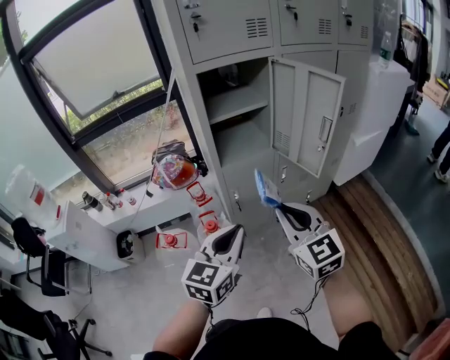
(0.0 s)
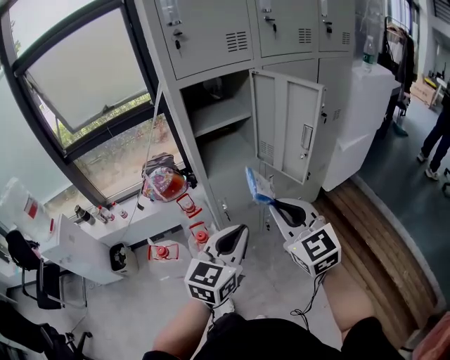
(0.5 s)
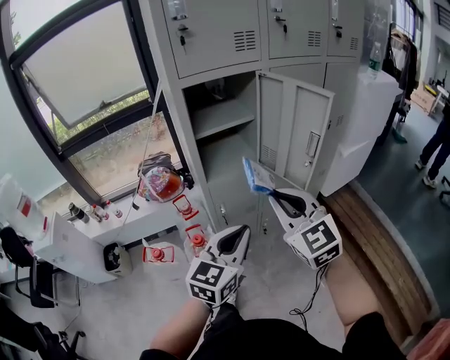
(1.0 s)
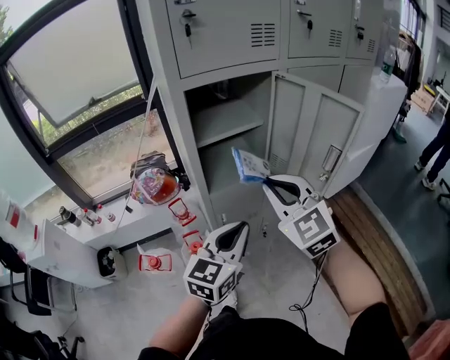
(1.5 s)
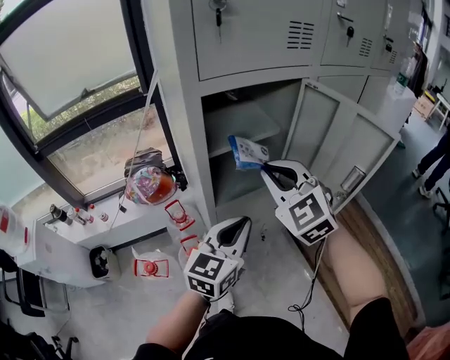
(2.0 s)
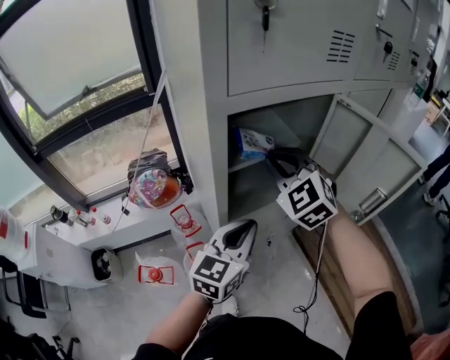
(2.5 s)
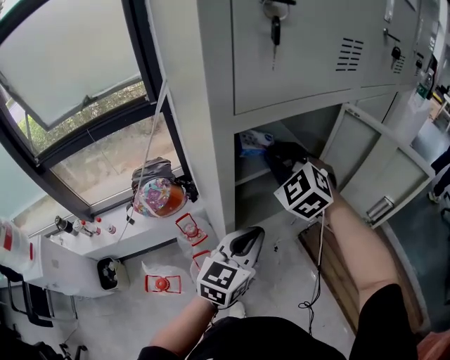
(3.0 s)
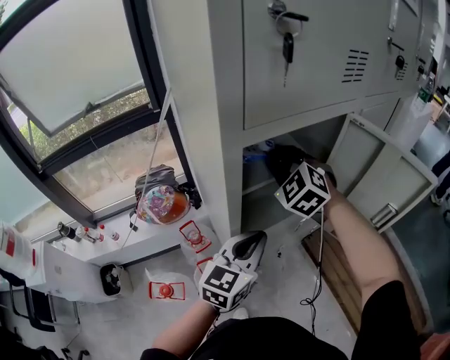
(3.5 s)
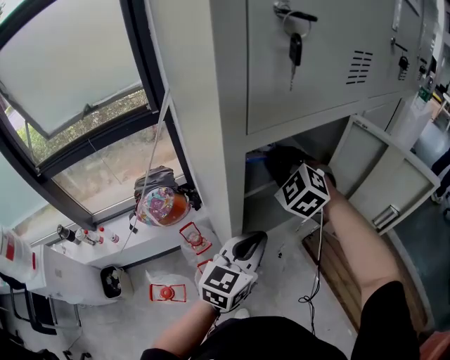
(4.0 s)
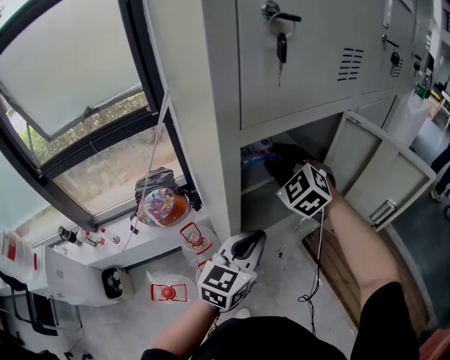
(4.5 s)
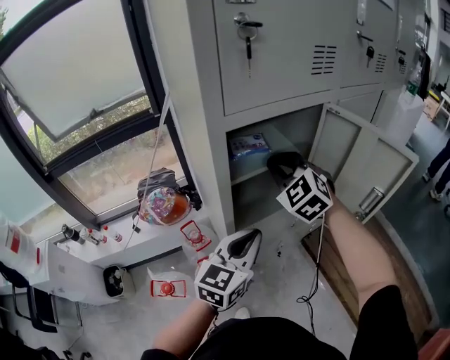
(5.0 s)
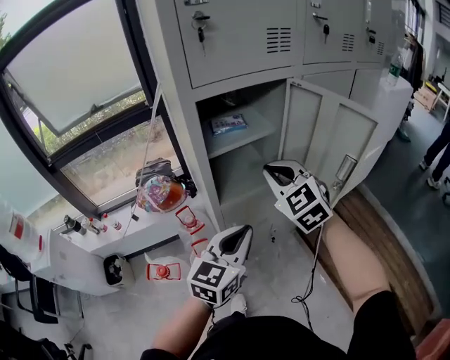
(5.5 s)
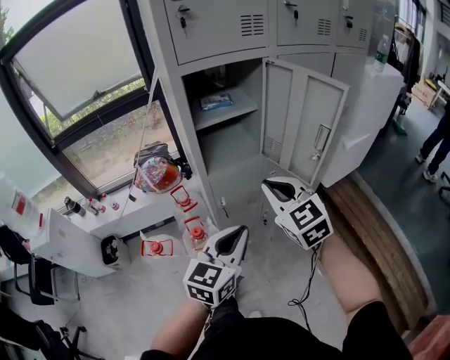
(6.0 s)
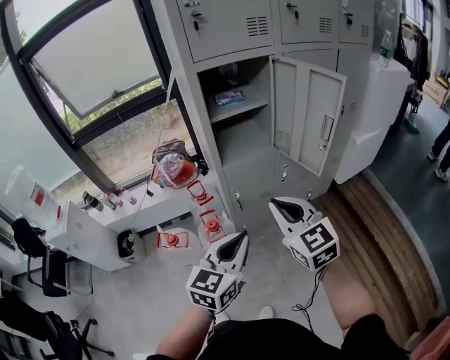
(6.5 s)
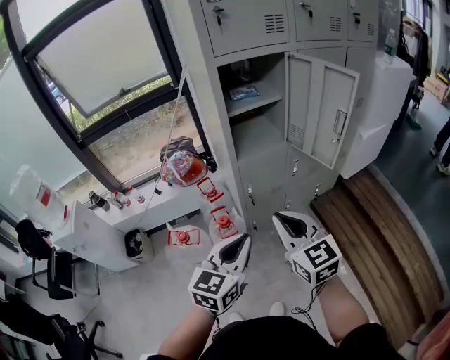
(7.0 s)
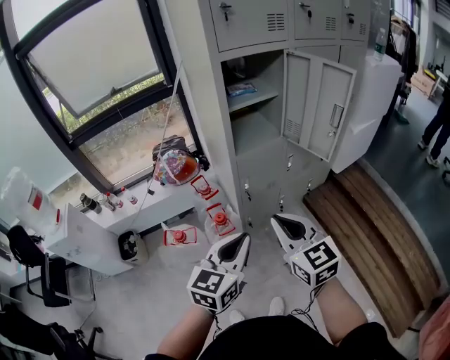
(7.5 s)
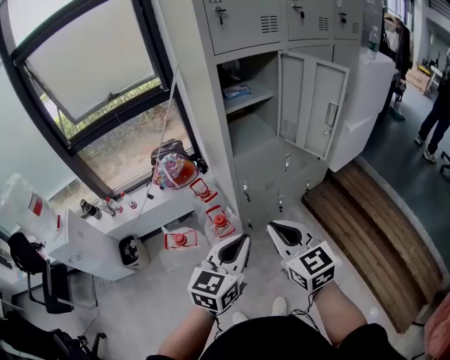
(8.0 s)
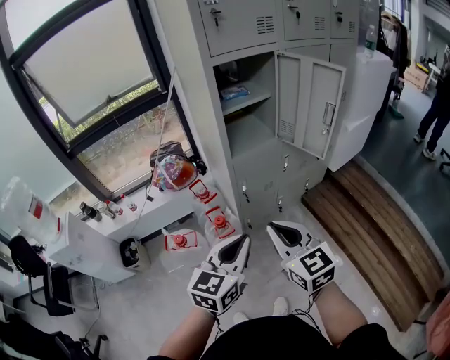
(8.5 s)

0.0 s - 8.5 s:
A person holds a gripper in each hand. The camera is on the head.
0.0 s - 2.0 s: The two grippers go roughly 25 cm forward. The right gripper turns by roughly 30 degrees.
2.0 s - 4.0 s: The left gripper heads forward, covering about 10 cm, while the right gripper travels forward and to the left by about 20 cm.
4.0 s - 6.5 s: Both grippers move backward, roughly 35 cm. The right gripper rotates some 40 degrees.
6.5 s - 8.5 s: The right gripper goes some 15 cm backward and to the left, while the left gripper is displaced to the left and backward by about 10 cm.

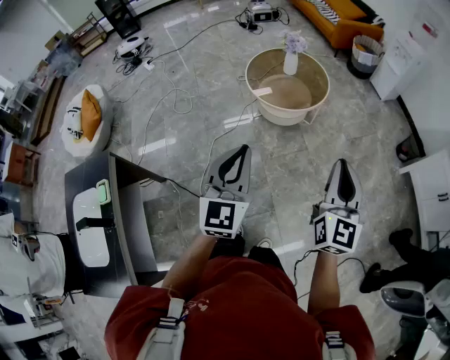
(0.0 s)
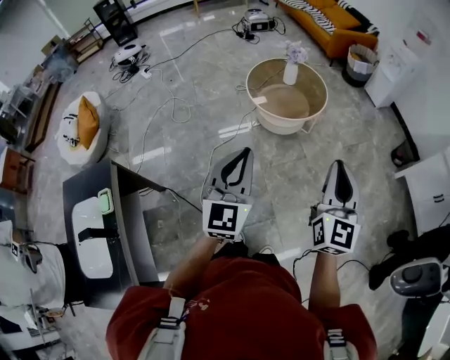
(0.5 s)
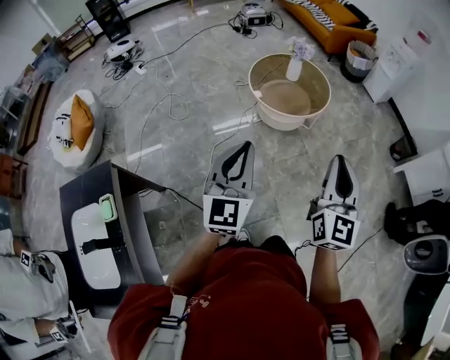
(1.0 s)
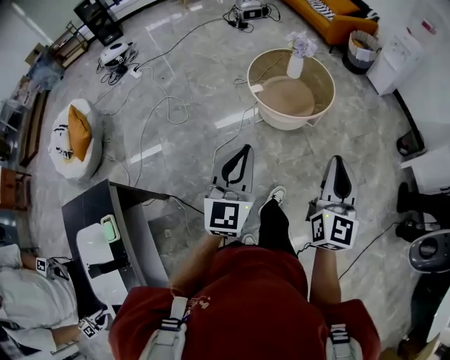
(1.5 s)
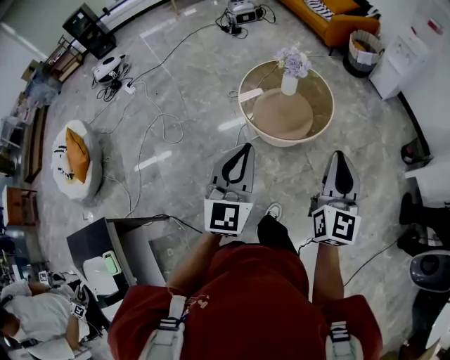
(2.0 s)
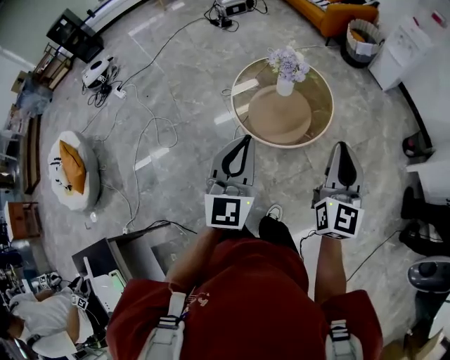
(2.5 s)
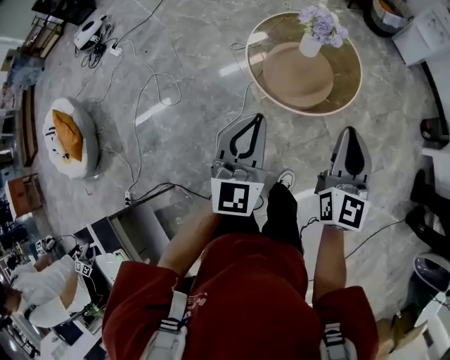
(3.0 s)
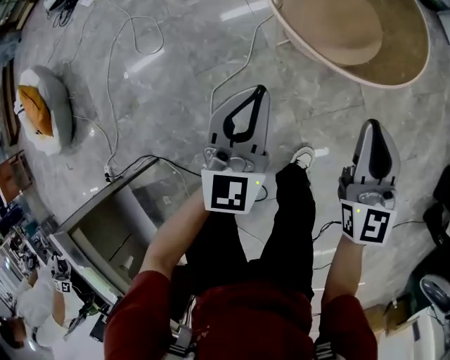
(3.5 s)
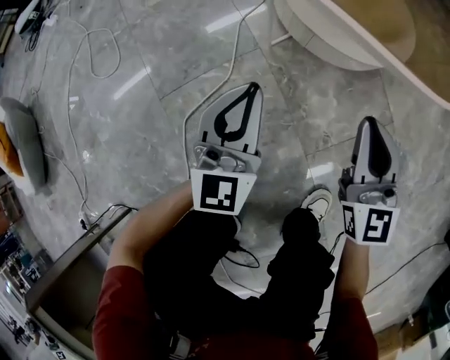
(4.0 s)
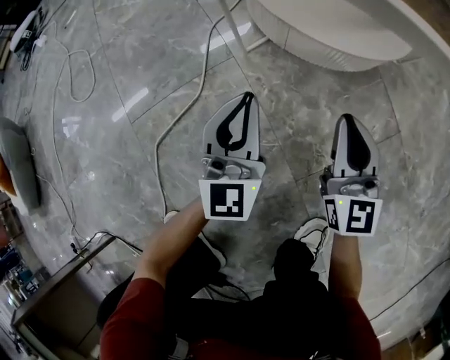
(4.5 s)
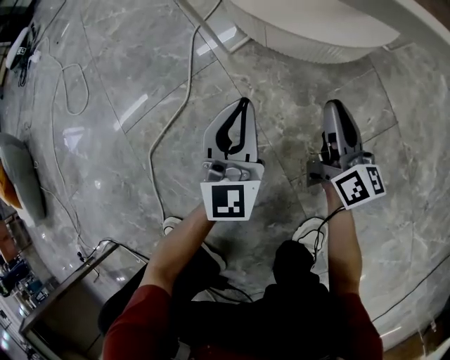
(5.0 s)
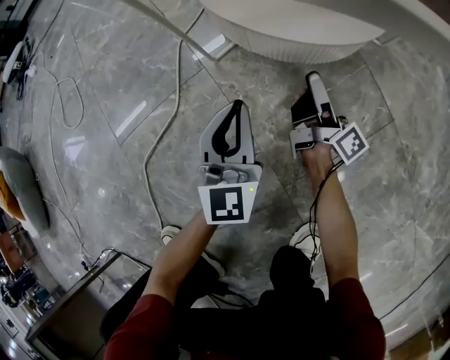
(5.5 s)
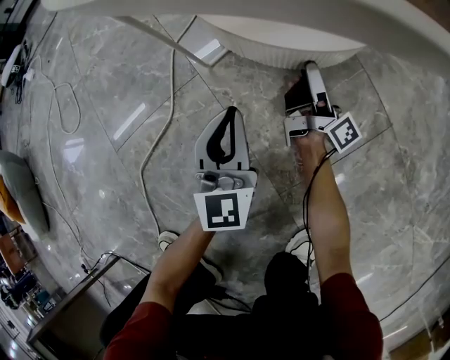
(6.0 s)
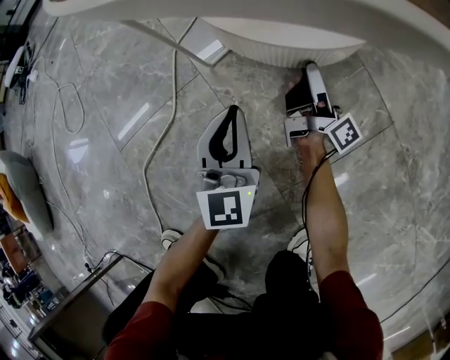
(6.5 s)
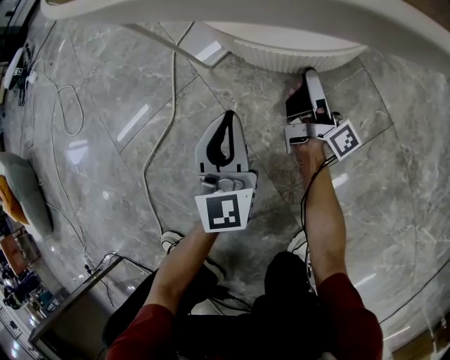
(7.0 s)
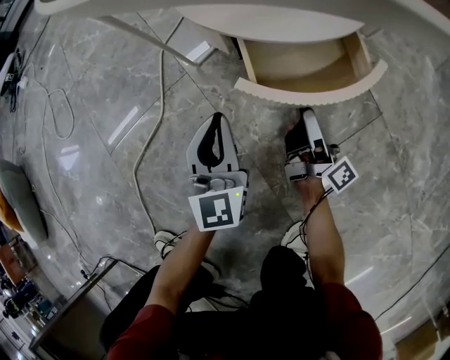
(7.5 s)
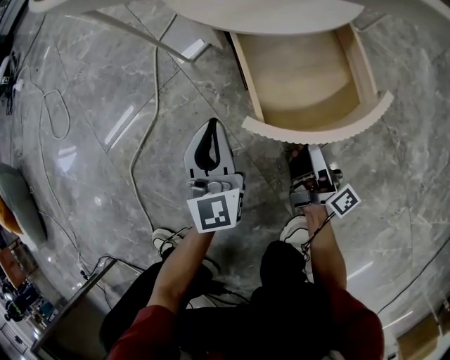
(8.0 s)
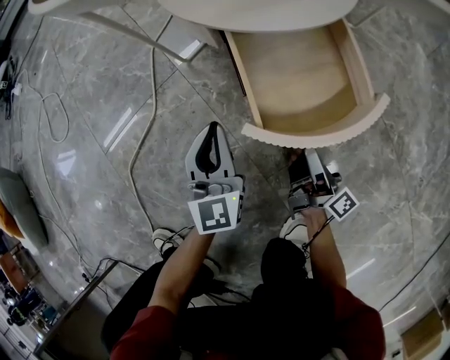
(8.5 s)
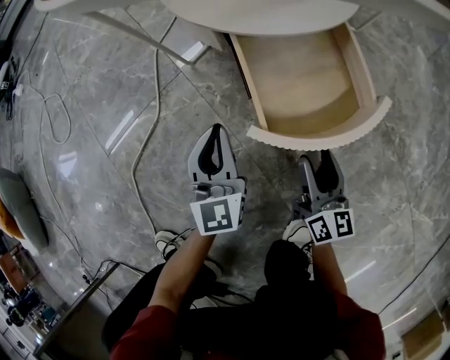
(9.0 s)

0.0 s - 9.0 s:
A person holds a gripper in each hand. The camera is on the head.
0.0 s - 2.0 s: The left gripper heads forward, covering about 25 cm. Meanwhile the right gripper heads forward and to the left, covering approximately 25 cm.
2.0 s - 4.5 s: Both grippers travel together downward, roughly 80 cm.
4.5 s - 7.0 s: The left gripper shifts roughly 5 cm downward; the right gripper moves downward and forward, roughly 20 cm, rotates around the line of its fingers by about 80 degrees, clockwise from behind, and opens its fingers.
7.0 s - 9.0 s: The right gripper travels backward by roughly 20 cm, and twists some 50 degrees counterclockwise, seen from behind, while the left gripper changes place by about 5 cm.

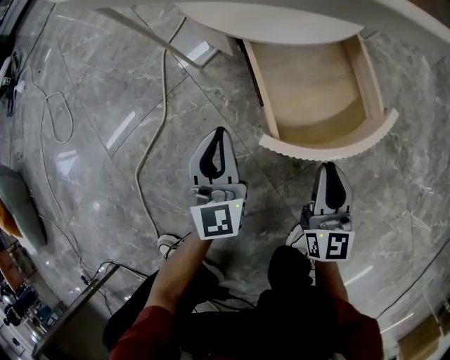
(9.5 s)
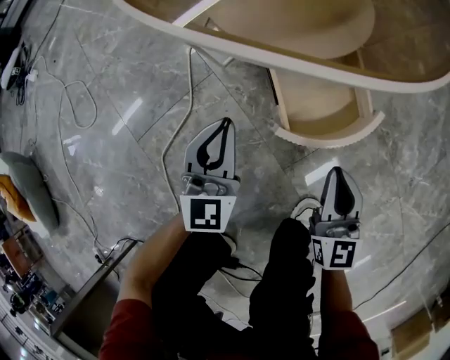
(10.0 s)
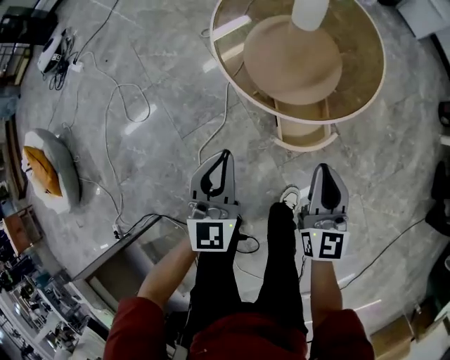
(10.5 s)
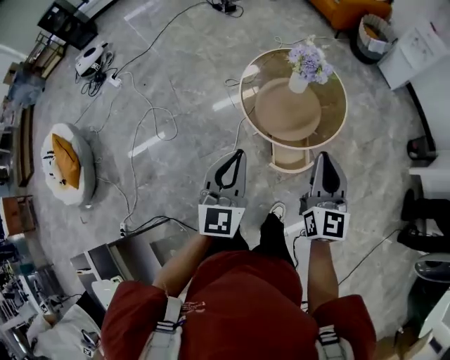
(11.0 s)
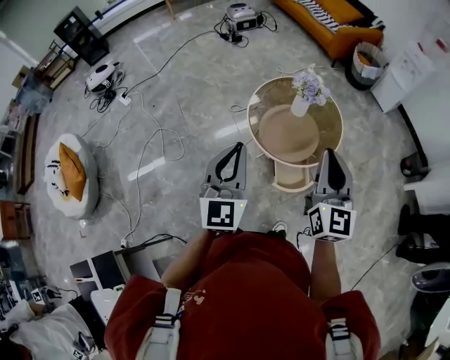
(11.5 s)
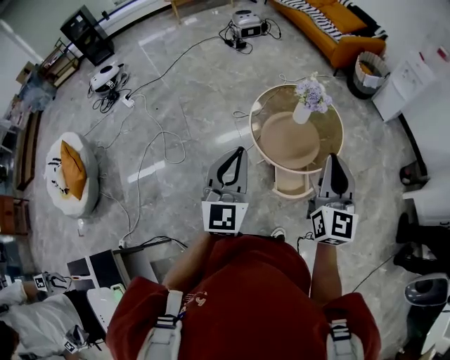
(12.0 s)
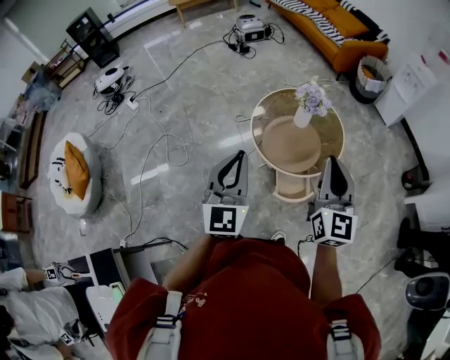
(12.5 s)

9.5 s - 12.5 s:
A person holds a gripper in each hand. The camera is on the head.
9.5 s - 11.0 s: The two grippers go roughly 80 cm upward.
11.0 s - 12.5 s: The two grippers go about 10 cm upward.

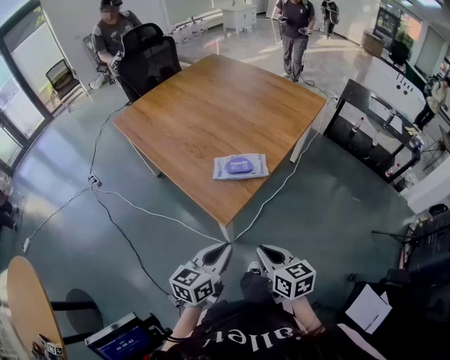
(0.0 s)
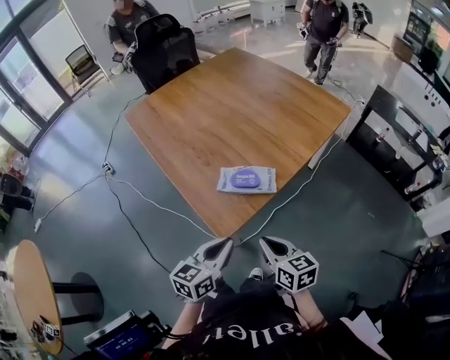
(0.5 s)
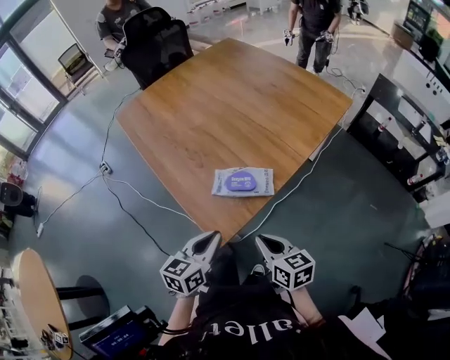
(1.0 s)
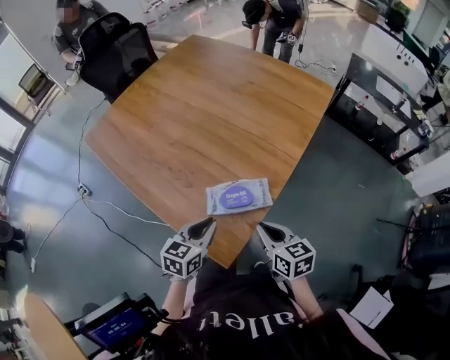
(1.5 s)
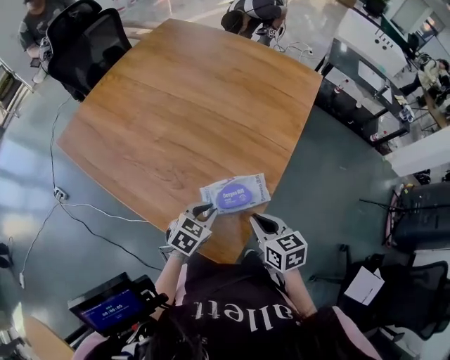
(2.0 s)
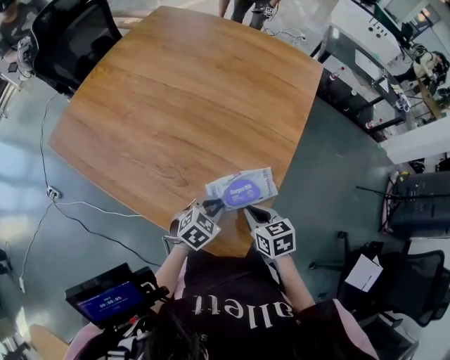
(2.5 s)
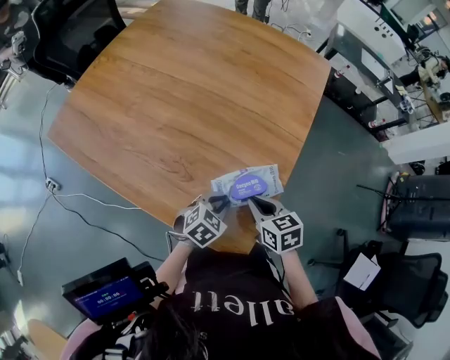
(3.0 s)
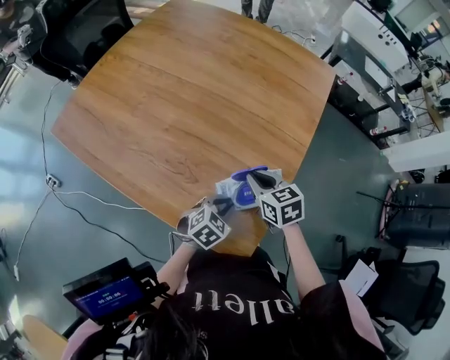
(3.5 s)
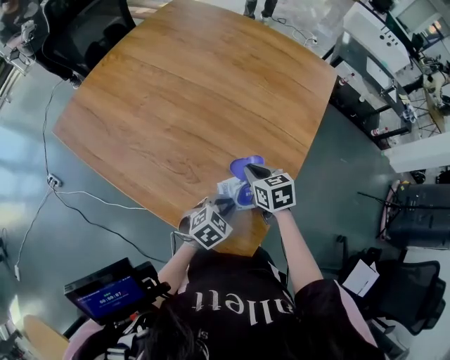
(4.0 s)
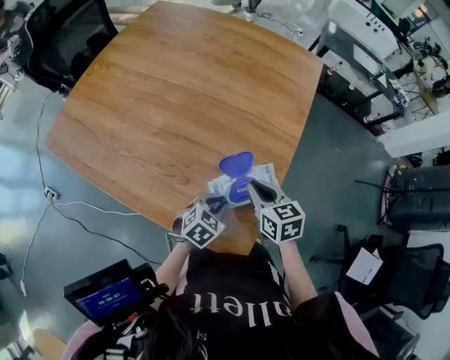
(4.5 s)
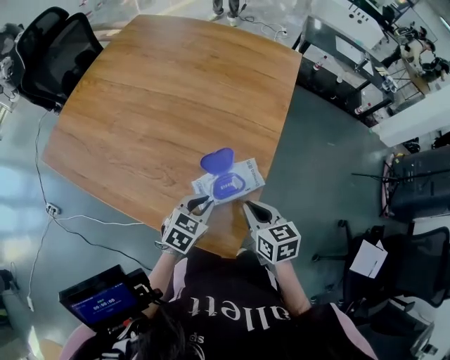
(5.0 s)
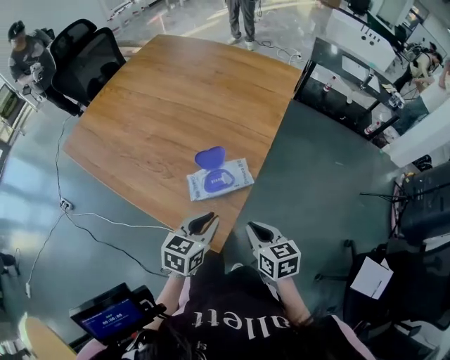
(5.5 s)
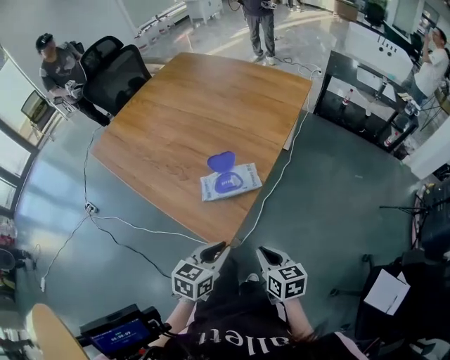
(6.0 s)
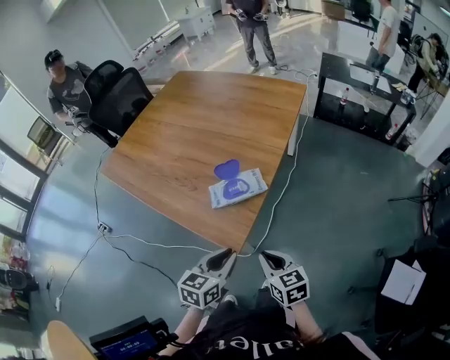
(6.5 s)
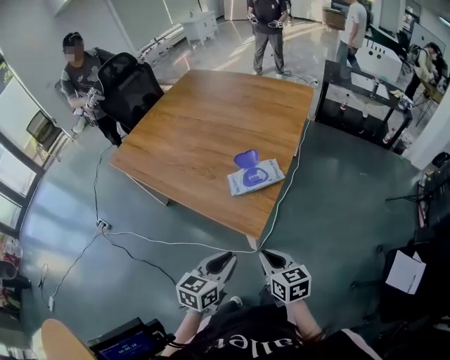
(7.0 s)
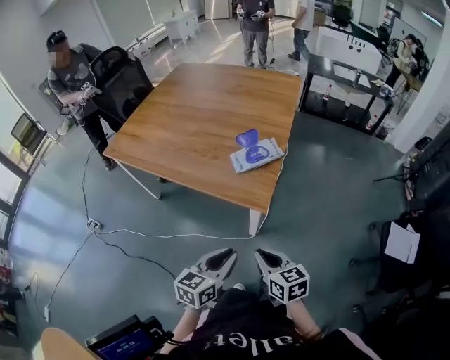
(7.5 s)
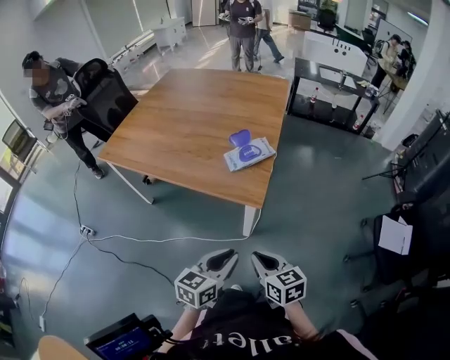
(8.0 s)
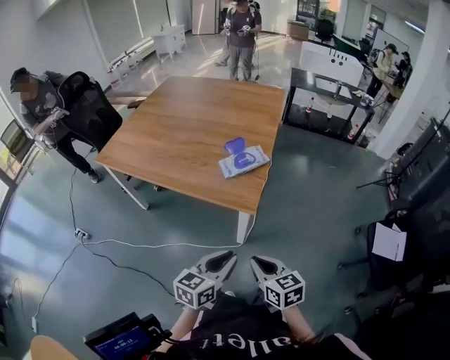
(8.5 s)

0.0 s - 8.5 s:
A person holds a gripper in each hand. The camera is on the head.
0.0 s - 2.0 s: The left gripper moves some 35 cm, and tips its fingers downward by some 30 degrees, while the right gripper moves roughly 30 cm.
2.0 s - 4.0 s: The right gripper shifts approximately 20 cm forward, to the left and downward.
4.0 s - 6.5 s: The right gripper heads backward and to the right, covering roughly 40 cm. Meanwhile the left gripper heads backward, upward and to the right, covering approximately 30 cm, and changes its angle by some 40 degrees.
6.5 s - 8.5 s: Both grippers travel together backward and to the left, some 25 cm.
